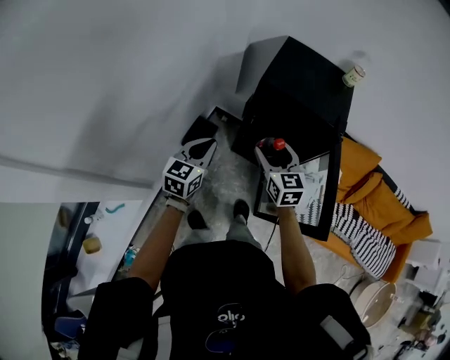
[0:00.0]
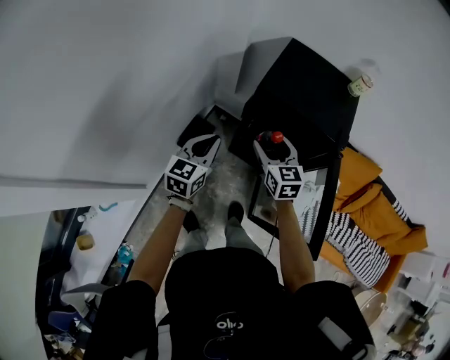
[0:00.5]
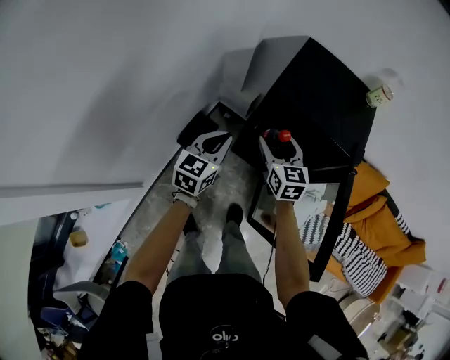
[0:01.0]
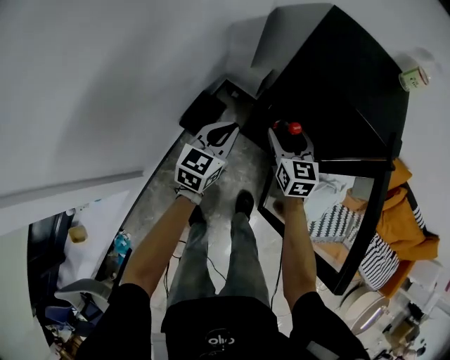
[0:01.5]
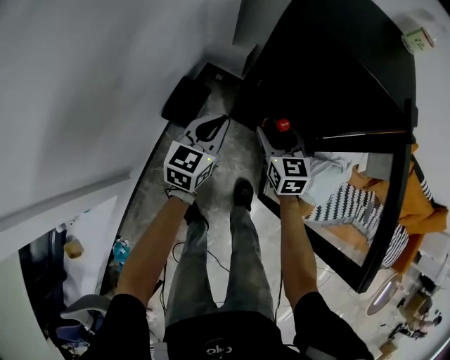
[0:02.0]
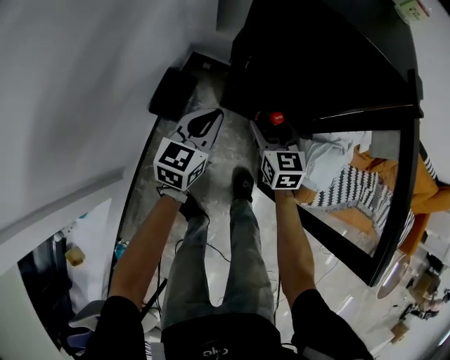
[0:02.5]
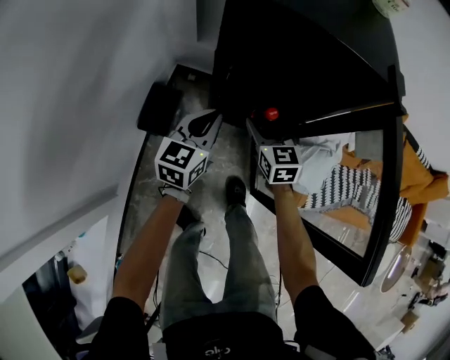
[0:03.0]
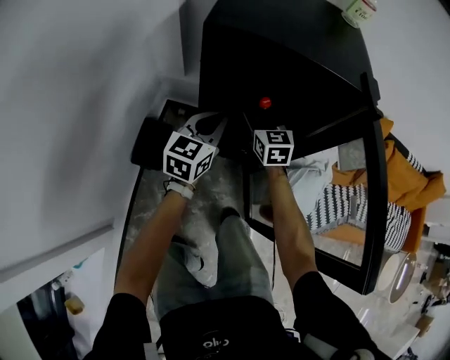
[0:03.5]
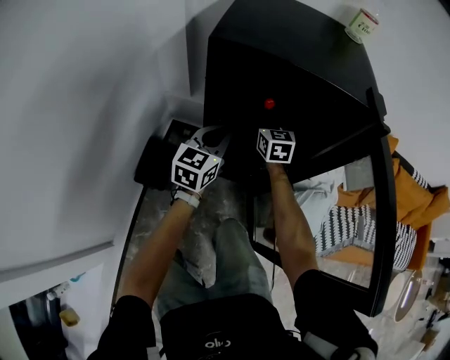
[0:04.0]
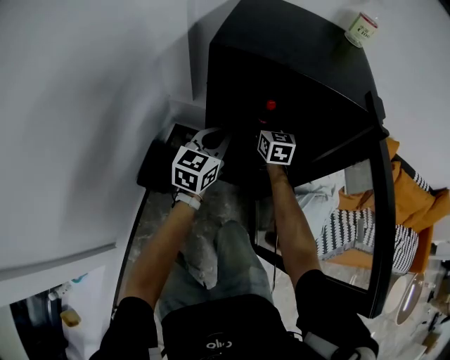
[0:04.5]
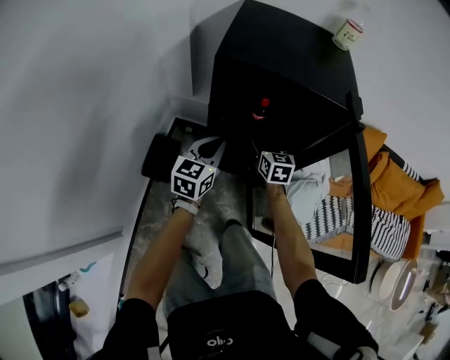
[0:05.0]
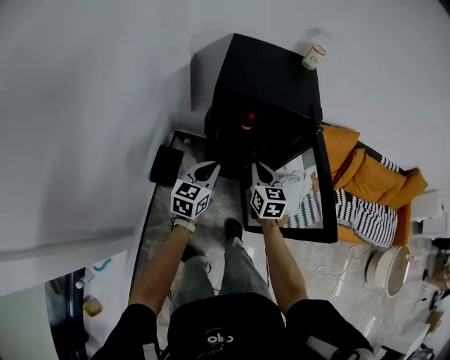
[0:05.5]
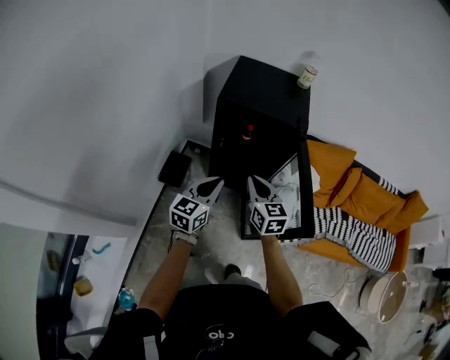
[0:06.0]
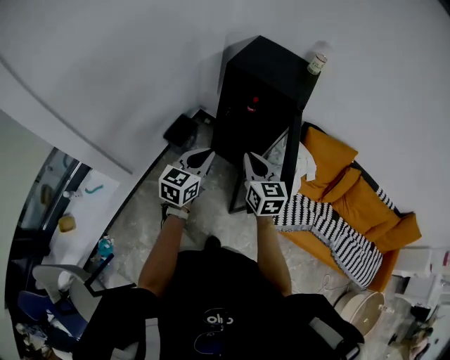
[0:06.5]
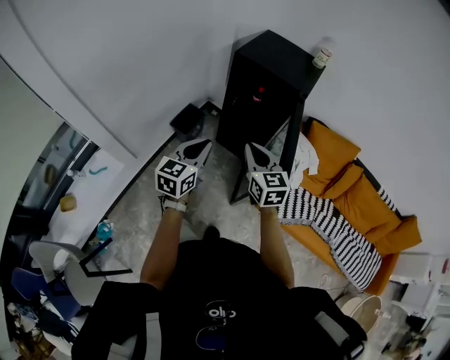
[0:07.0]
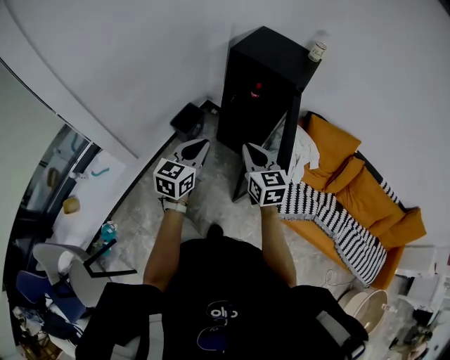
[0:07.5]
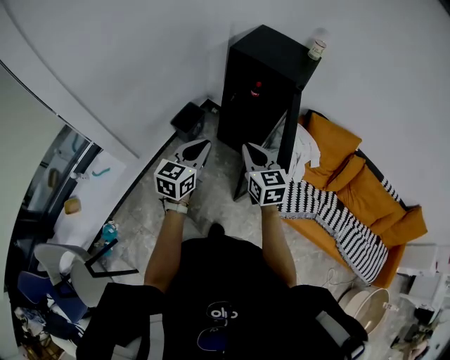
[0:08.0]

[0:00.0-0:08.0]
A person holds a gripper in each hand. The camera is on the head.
0:00.0 to 0:02.0: The right gripper is displaced downward by some 30 cm; the left gripper moves downward and forward, about 25 cm.
0:02.0 to 0:04.0: The left gripper shifts roughly 15 cm forward and to the right. Meanwhile the right gripper shifts about 20 cm forward.
0:04.0 to 0:06.0: Both grippers travel together backward and upward, approximately 40 cm. The right gripper closes.
0:06.0 to 0:08.0: Both grippers travel together backward, about 20 cm. The right gripper turns by some 20 degrees.

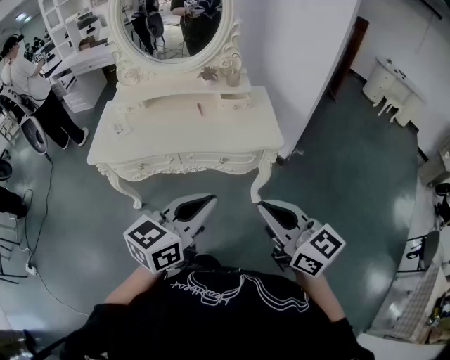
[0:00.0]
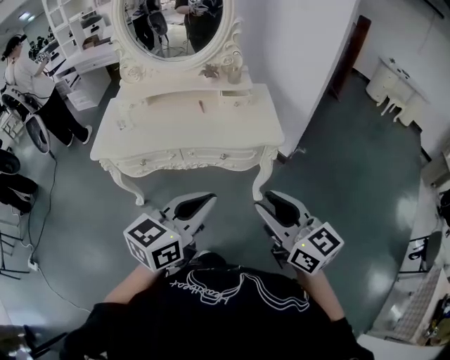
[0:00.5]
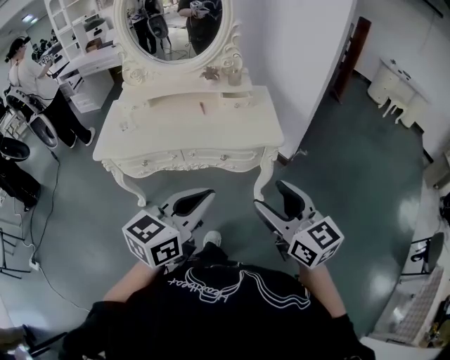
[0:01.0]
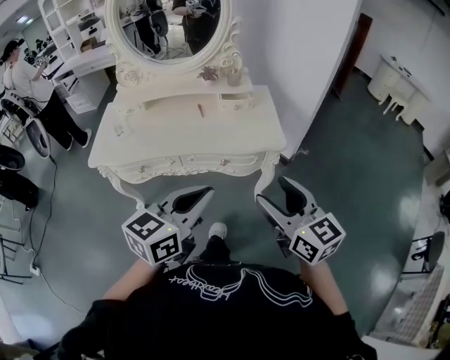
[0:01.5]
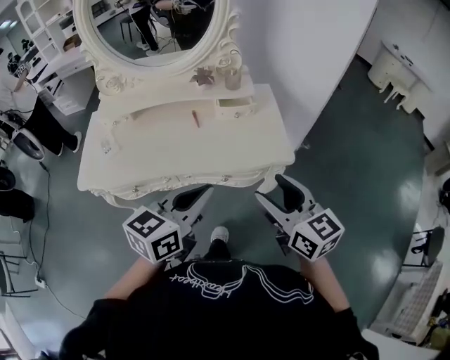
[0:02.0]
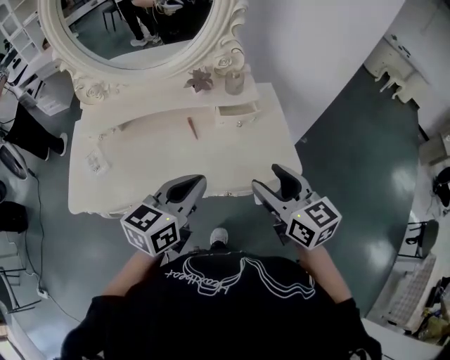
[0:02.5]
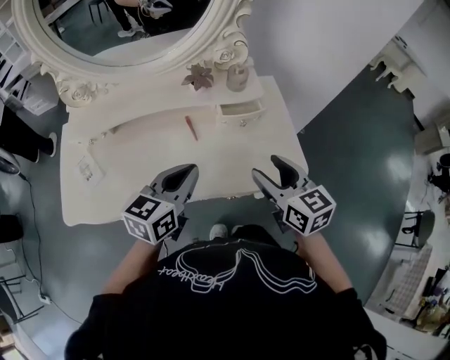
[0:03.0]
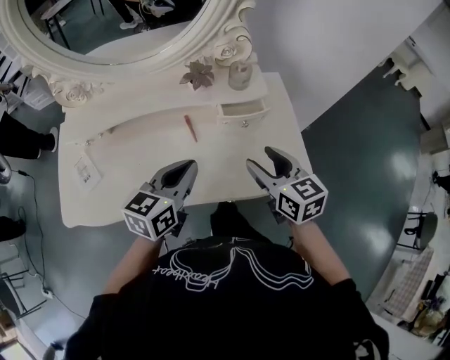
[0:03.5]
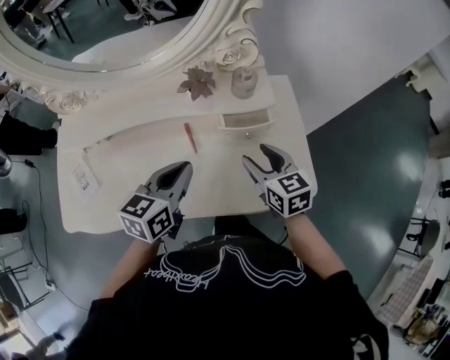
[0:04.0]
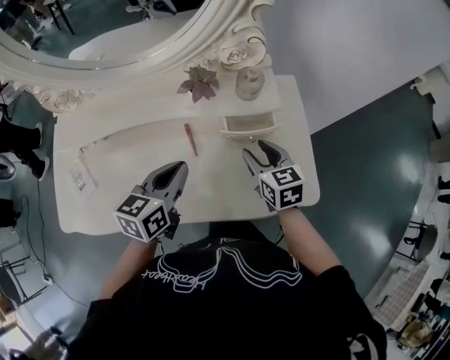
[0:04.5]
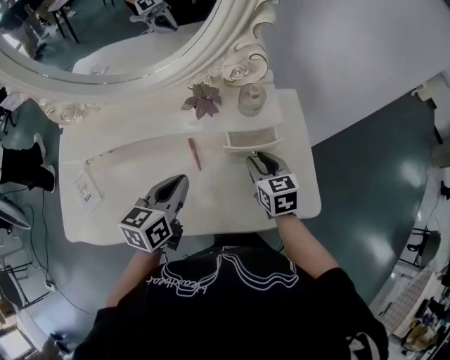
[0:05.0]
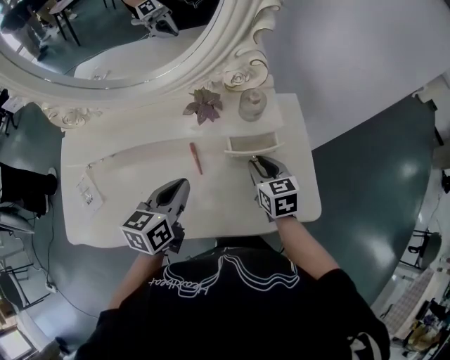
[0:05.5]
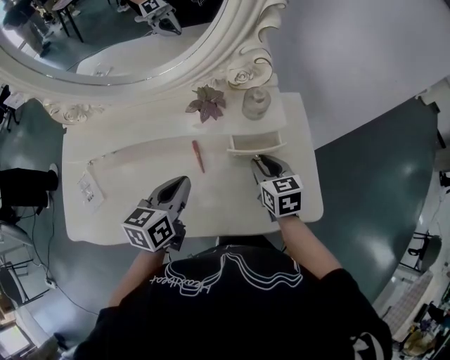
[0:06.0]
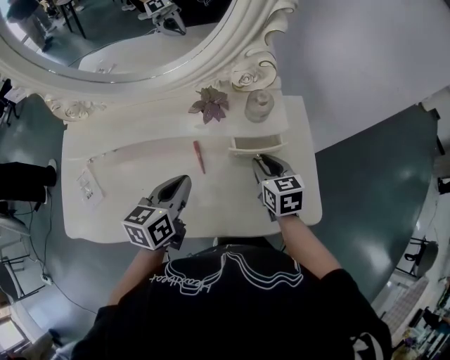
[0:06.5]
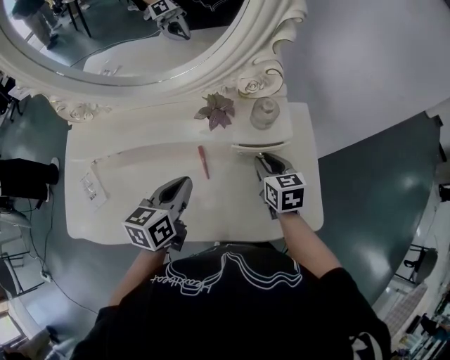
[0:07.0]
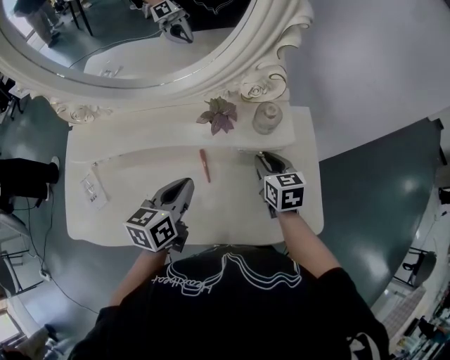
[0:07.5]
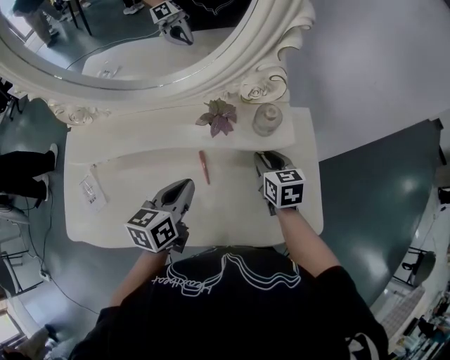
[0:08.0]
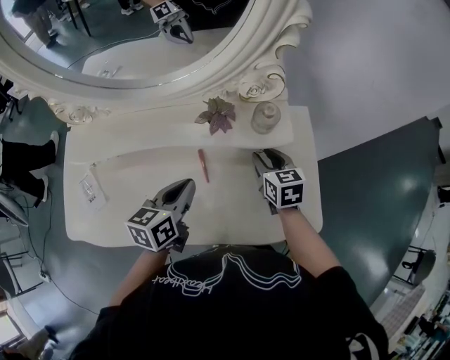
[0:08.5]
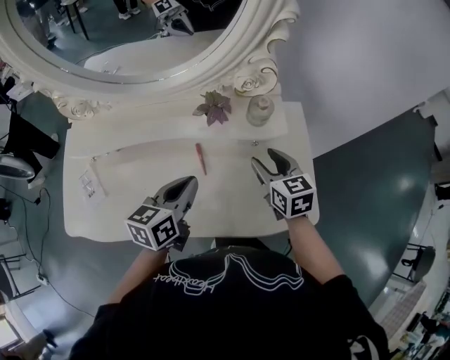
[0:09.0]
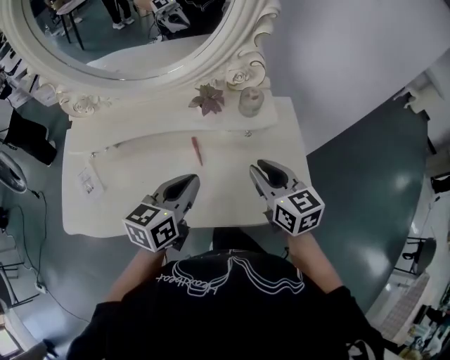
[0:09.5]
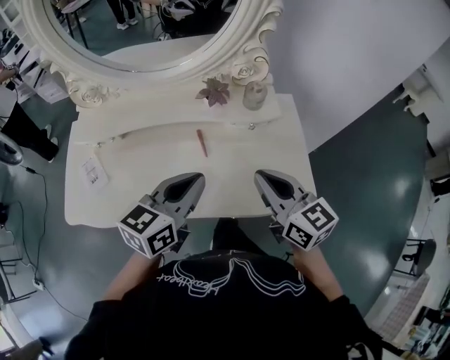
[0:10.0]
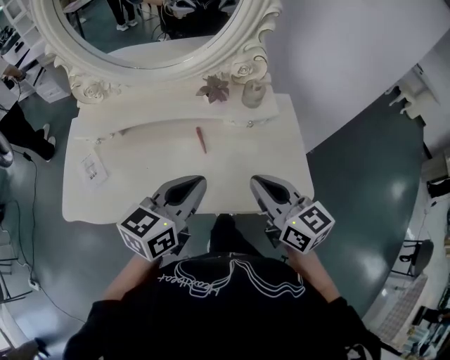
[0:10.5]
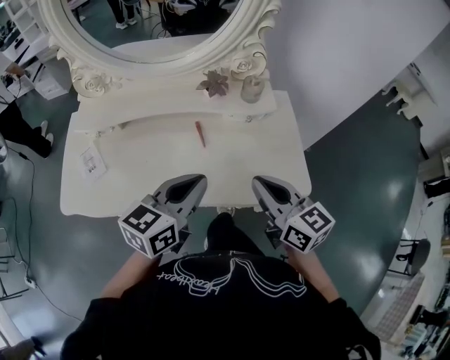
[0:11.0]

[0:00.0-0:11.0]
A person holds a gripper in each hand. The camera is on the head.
0:00.0 to 0:02.0: The two grippers go some 20 cm forward. The right gripper opens its fingers.
0:02.0 to 0:03.5: The left gripper moves forward, downward and to the left, some 25 cm. The right gripper shifts about 25 cm forward and downward.
0:03.5 to 0:05.5: The right gripper is displaced forward and downward by some 15 cm, and closes. The left gripper shifts some 5 cm forward.
0:05.5 to 0:07.5: The right gripper changes place by some 5 cm.
0:07.5 to 0:09.0: The right gripper moves upward, about 5 cm, and opens.
0:09.0 to 0:11.0: The left gripper is displaced backward and upward by approximately 15 cm, while the right gripper travels backward and upward by about 25 cm, changes its angle by roughly 20 degrees, and closes.

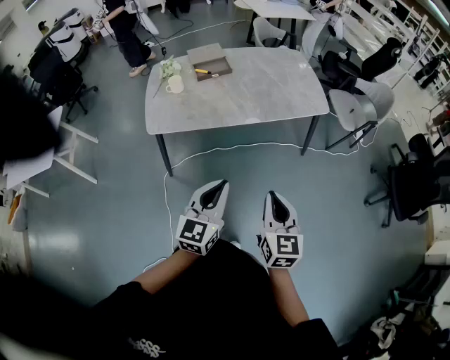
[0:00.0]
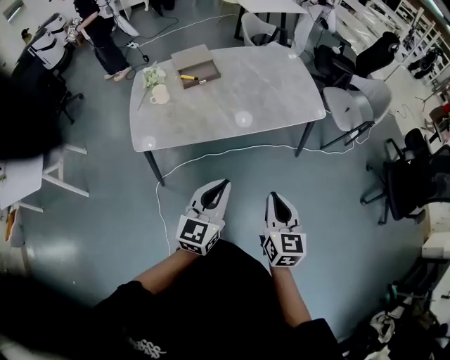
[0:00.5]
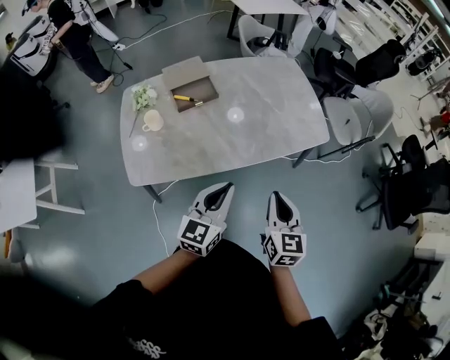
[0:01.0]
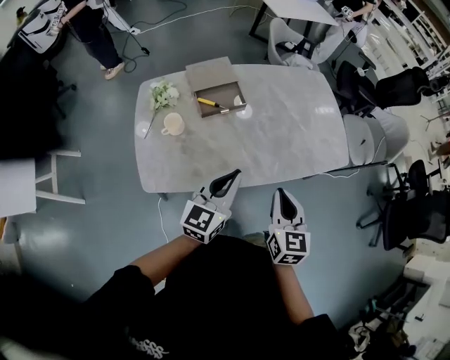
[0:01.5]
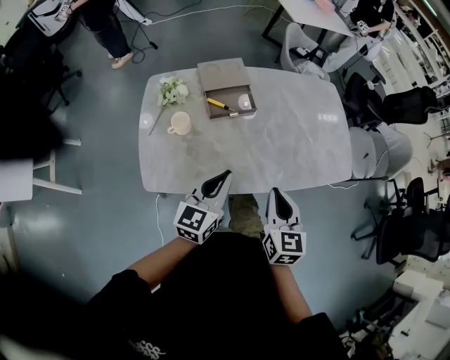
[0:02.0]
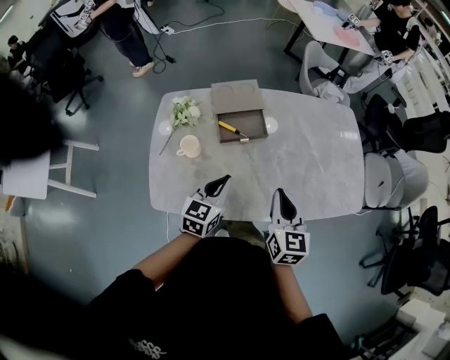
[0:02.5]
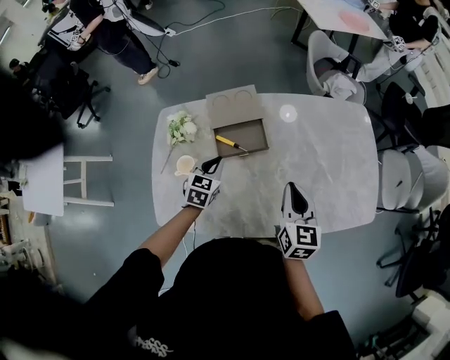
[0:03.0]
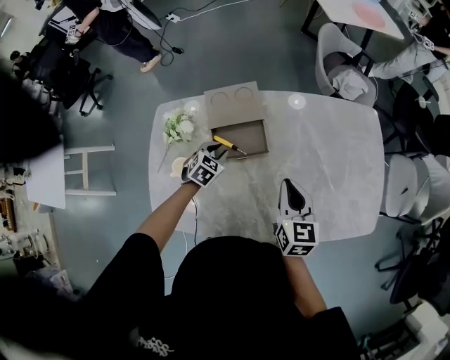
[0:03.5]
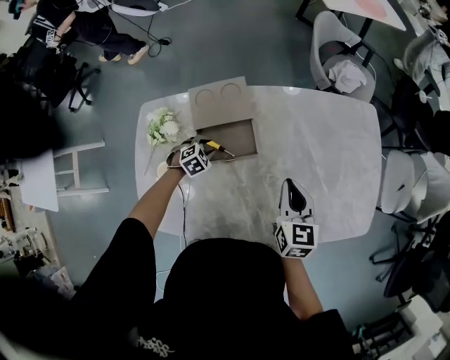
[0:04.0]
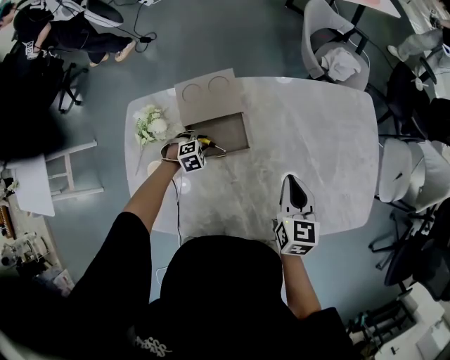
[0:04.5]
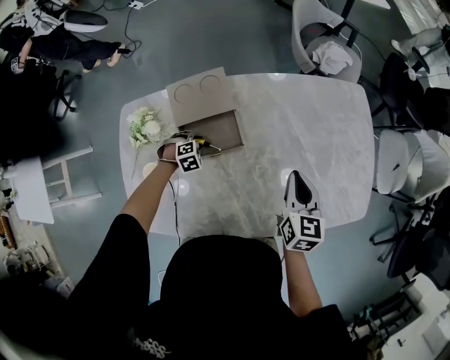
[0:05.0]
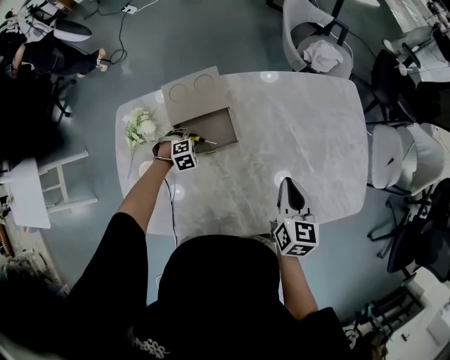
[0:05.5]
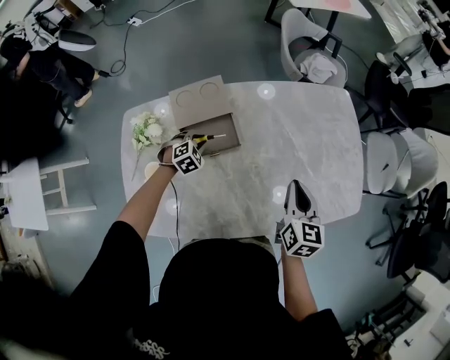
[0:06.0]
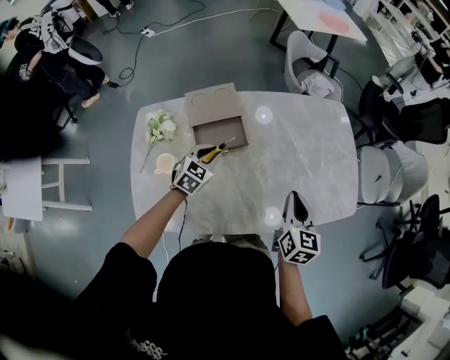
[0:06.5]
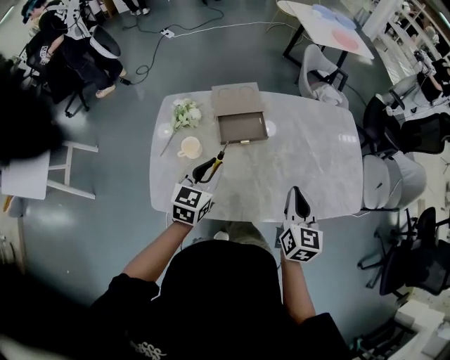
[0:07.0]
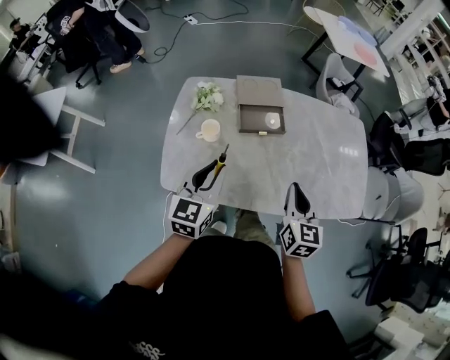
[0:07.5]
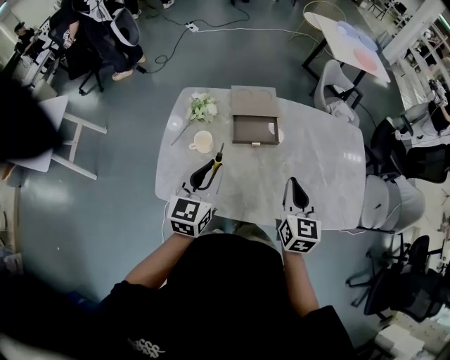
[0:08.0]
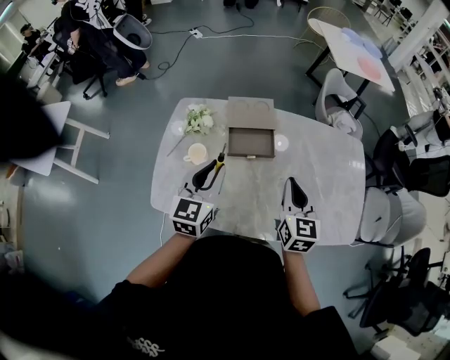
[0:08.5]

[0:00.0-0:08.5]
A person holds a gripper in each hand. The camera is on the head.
0:00.0 to 0:02.0: Both grippers are carried forward and to the left, approximately 50 cm.
0:02.0 to 0:04.0: The left gripper goes roughly 50 cm forward and downward, tips its fingers downward by about 60 degrees, and opens up. Meanwhile the right gripper goes about 35 cm forward.
0:04.0 to 0:06.5: The left gripper shifts some 15 cm upward, and tilts its fingers some 30 degrees upward, while the right gripper ends up about 15 cm from where it was.
0:06.5 to 0:08.5: The left gripper heads upward and backward, covering roughly 25 cm, and rotates approximately 40 degrees. Meanwhile the right gripper shifts roughly 15 cm to the left and upward, and turns by some 20 degrees.
